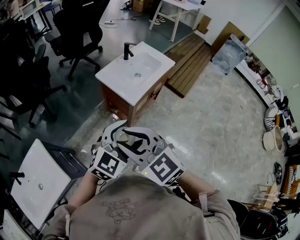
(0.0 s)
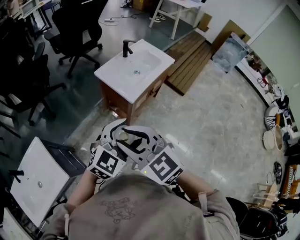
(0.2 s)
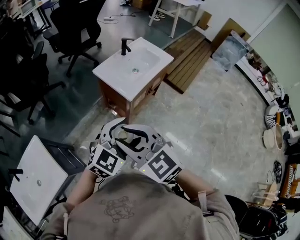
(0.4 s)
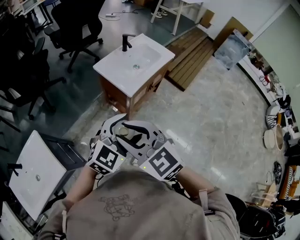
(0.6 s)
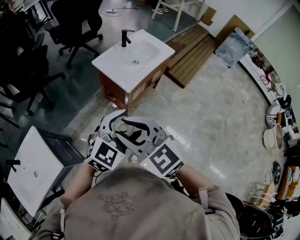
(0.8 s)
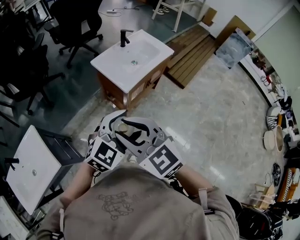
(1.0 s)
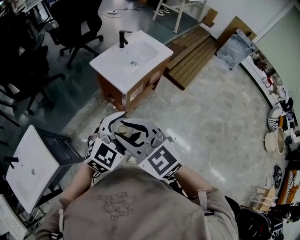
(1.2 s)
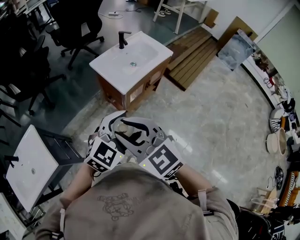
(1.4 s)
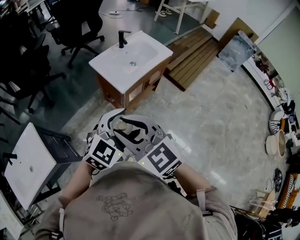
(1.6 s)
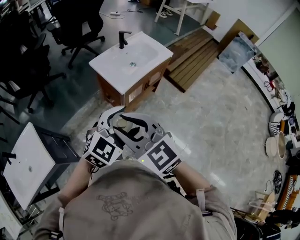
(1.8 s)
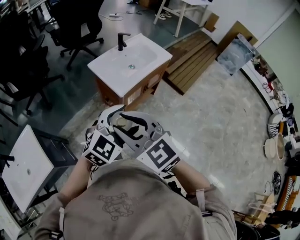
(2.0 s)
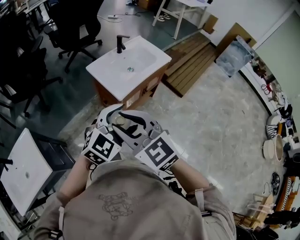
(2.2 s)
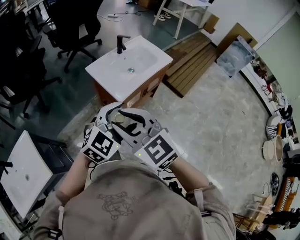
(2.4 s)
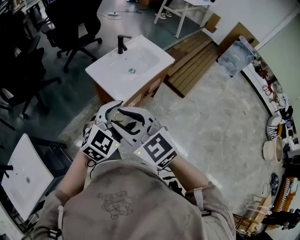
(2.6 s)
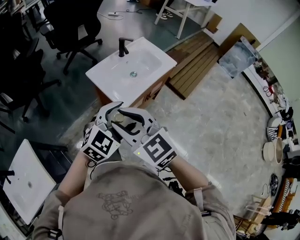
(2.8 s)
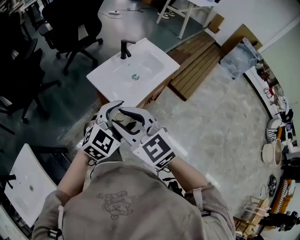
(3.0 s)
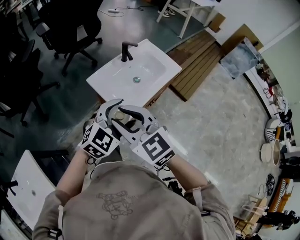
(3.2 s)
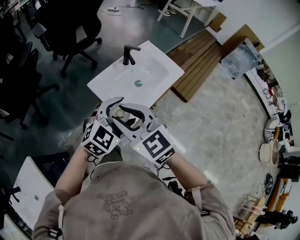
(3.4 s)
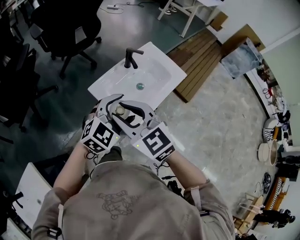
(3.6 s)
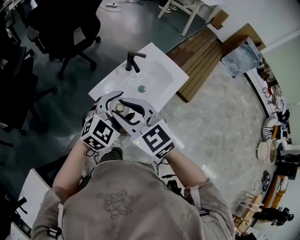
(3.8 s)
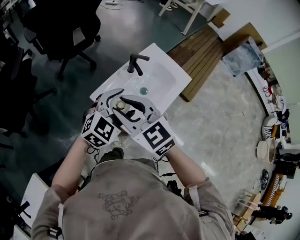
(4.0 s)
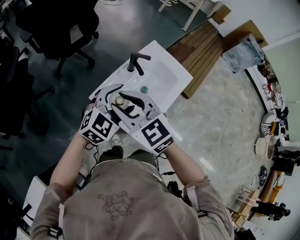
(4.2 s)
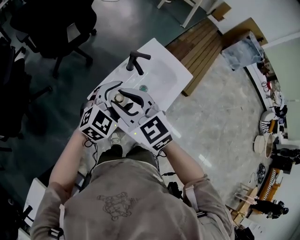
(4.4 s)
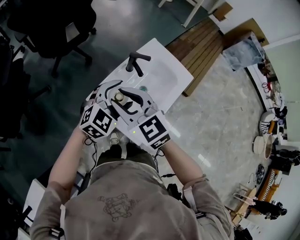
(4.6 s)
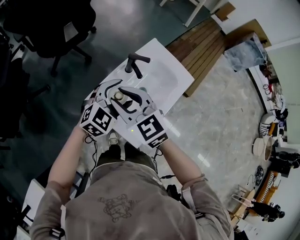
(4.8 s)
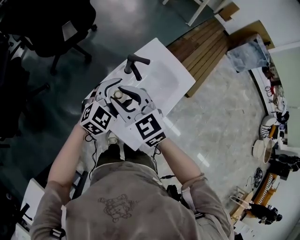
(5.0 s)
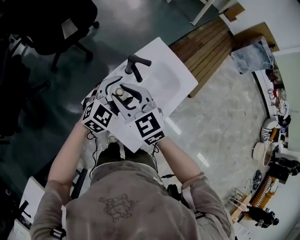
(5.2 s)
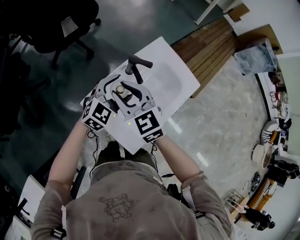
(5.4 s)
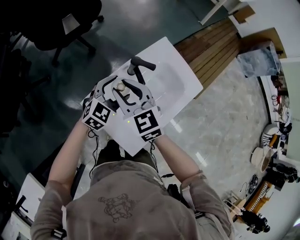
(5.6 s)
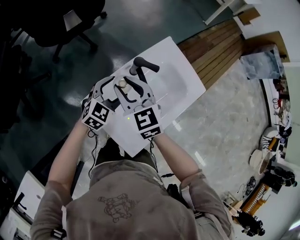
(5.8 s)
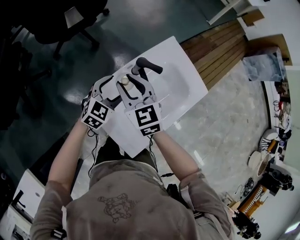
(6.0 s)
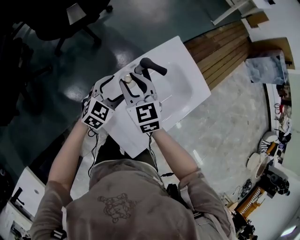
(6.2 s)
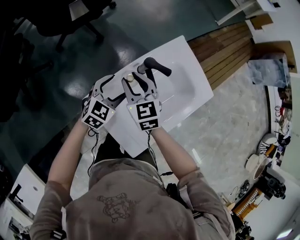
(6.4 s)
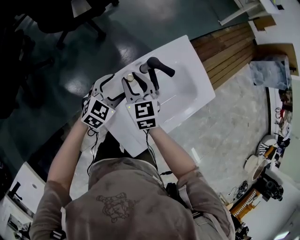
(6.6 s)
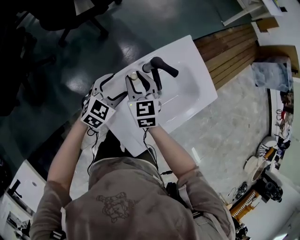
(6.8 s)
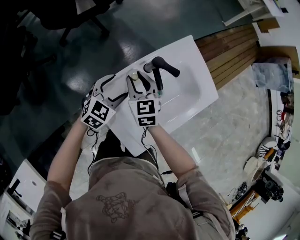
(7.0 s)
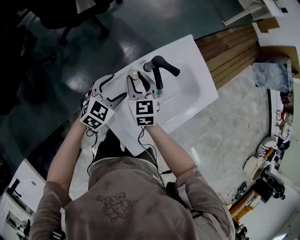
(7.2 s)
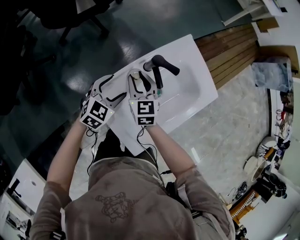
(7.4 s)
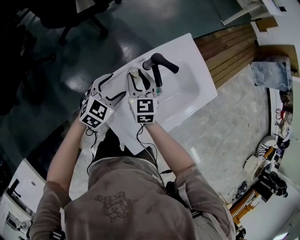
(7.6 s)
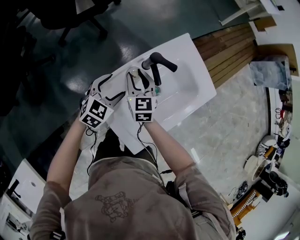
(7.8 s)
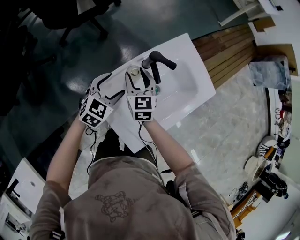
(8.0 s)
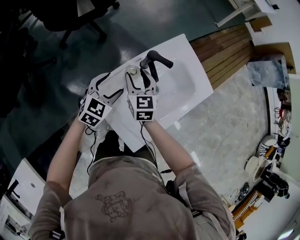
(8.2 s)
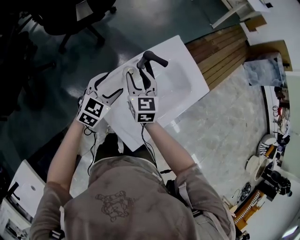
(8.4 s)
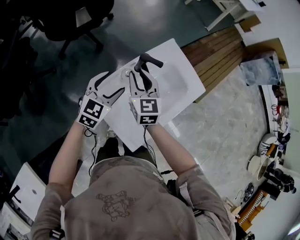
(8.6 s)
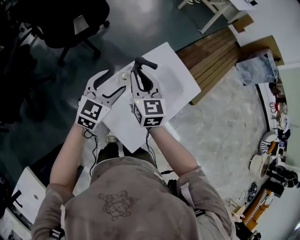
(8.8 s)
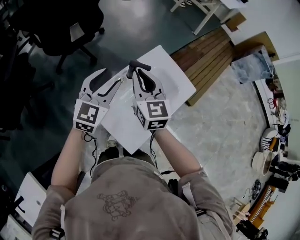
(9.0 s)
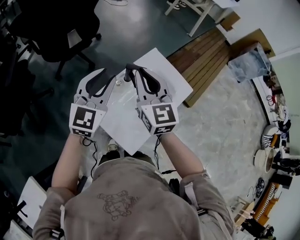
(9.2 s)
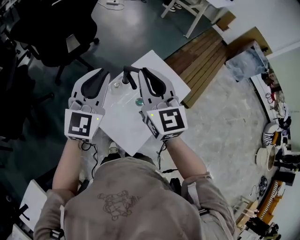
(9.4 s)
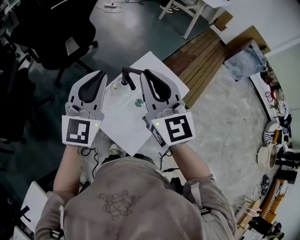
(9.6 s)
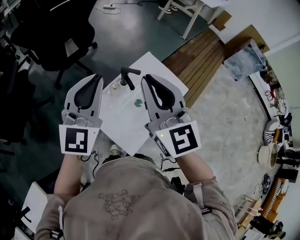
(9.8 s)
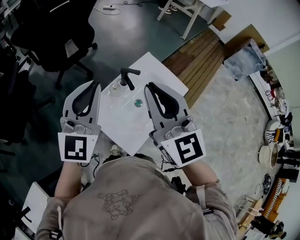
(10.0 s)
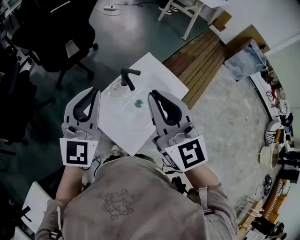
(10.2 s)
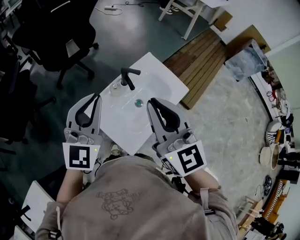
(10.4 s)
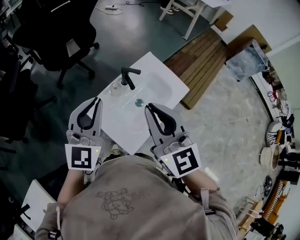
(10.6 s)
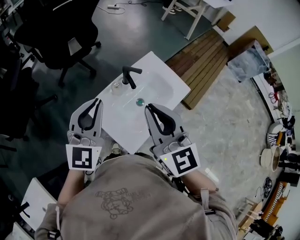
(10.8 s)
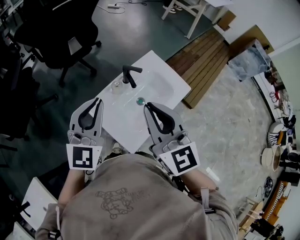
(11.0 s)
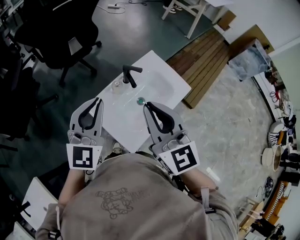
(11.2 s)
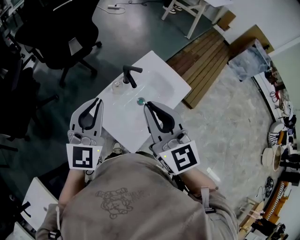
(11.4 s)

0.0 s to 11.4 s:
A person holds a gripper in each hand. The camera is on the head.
0.0 to 1.4 s: Both grippers move to the right, roughly 10 cm.
1.4 to 2.8 s: The grippers both shift forward by approximately 15 cm.
2.8 to 4.2 s: Both grippers travel together forward, approximately 30 cm.
4.2 to 5.6 s: Both grippers travel together forward and downward, about 20 cm.
5.6 to 7.2 s: The left gripper goes about 10 cm downward and to the left; the right gripper travels downward and forward by about 15 cm.
7.2 to 8.6 s: Both grippers move upward, roughly 10 cm.
8.6 to 10.0 s: The left gripper shifts roughly 25 cm upward, changes its angle by some 30 degrees, and closes its fingers. The right gripper goes about 30 cm upward and backward, and swivels about 20 degrees.
10.0 to 11.4 s: The left gripper changes place by about 5 cm. The right gripper shifts some 5 cm downward.

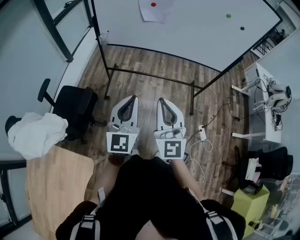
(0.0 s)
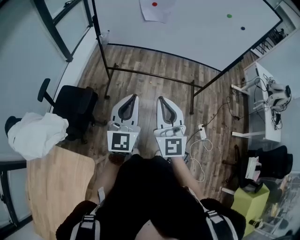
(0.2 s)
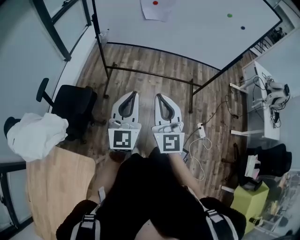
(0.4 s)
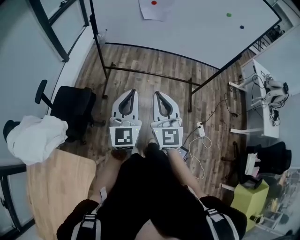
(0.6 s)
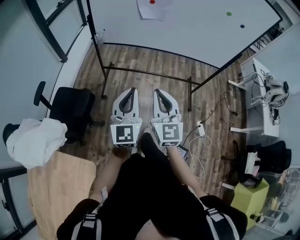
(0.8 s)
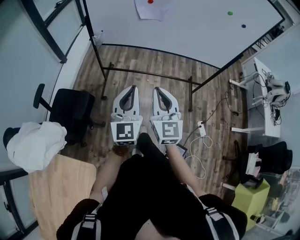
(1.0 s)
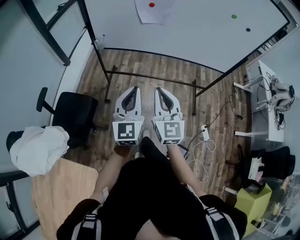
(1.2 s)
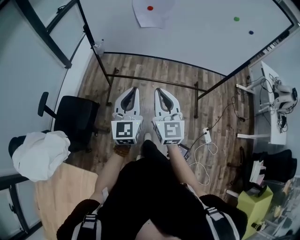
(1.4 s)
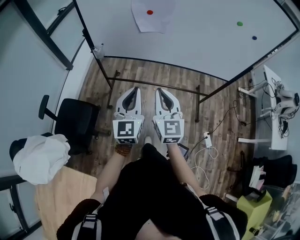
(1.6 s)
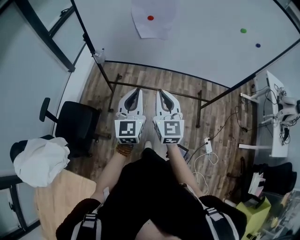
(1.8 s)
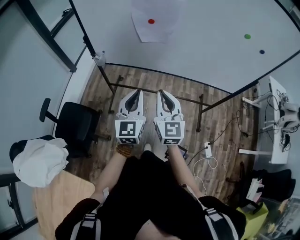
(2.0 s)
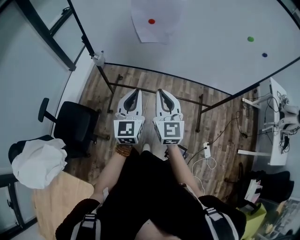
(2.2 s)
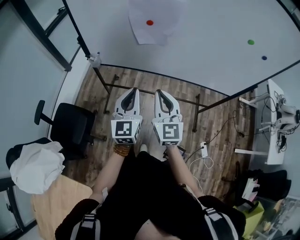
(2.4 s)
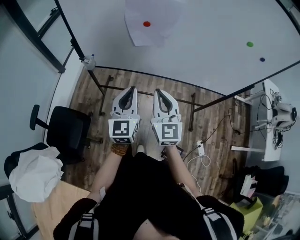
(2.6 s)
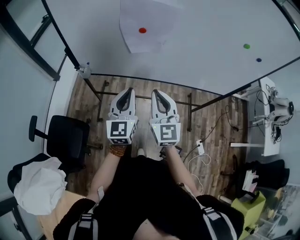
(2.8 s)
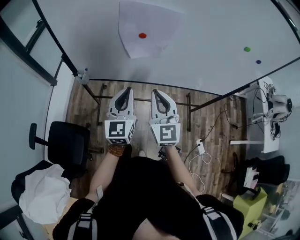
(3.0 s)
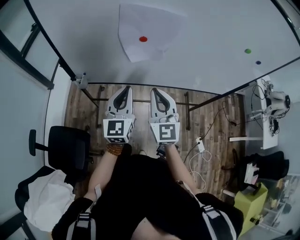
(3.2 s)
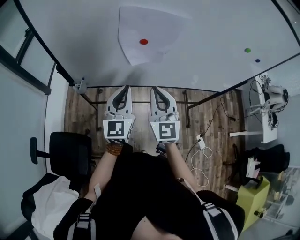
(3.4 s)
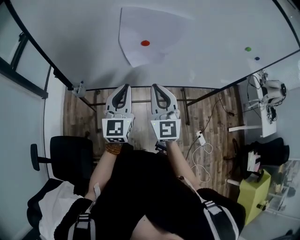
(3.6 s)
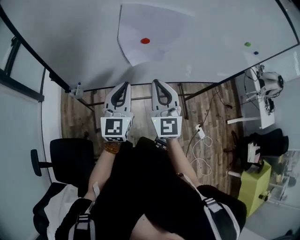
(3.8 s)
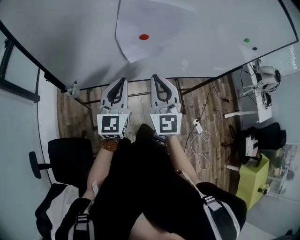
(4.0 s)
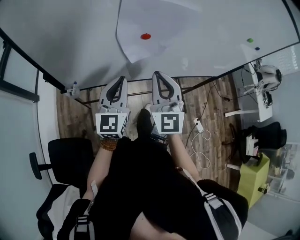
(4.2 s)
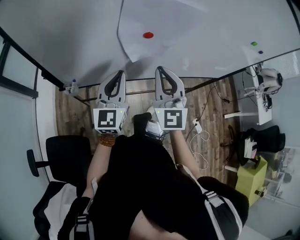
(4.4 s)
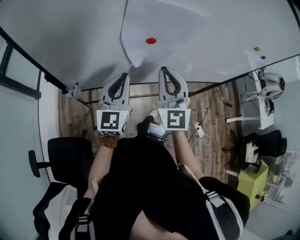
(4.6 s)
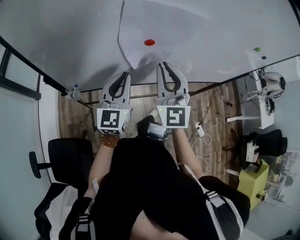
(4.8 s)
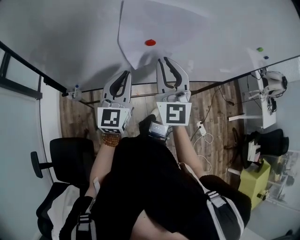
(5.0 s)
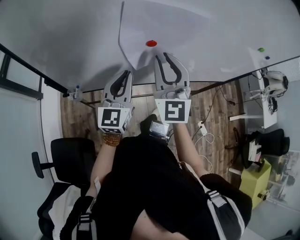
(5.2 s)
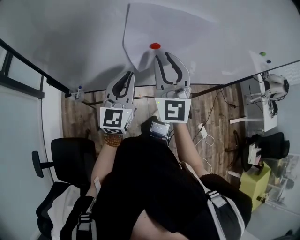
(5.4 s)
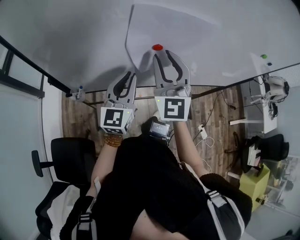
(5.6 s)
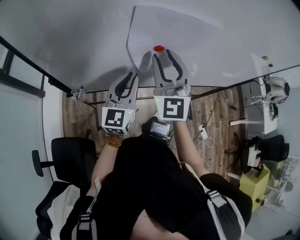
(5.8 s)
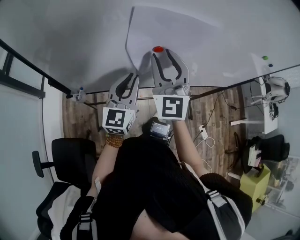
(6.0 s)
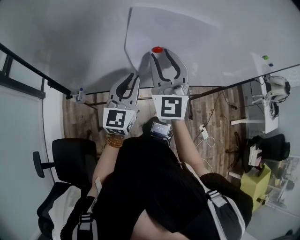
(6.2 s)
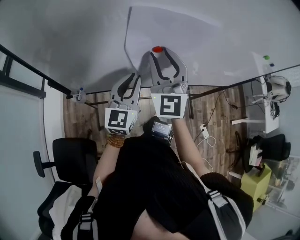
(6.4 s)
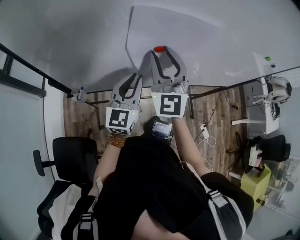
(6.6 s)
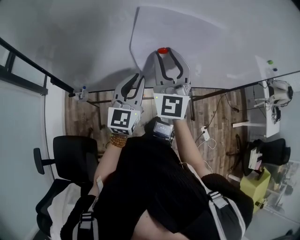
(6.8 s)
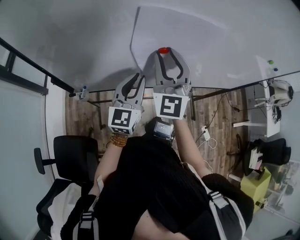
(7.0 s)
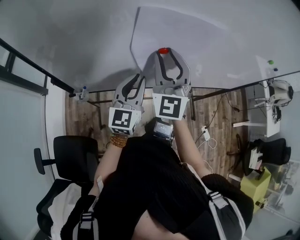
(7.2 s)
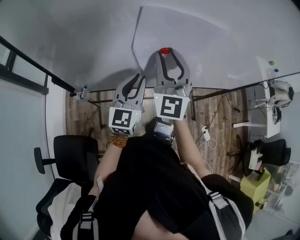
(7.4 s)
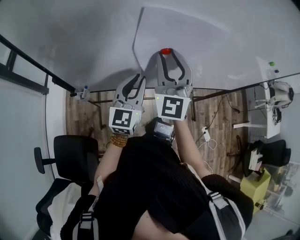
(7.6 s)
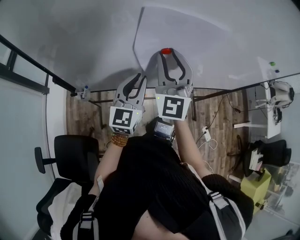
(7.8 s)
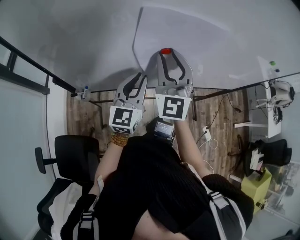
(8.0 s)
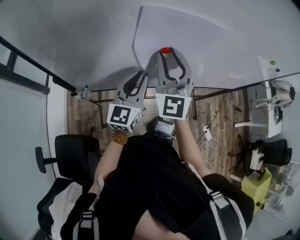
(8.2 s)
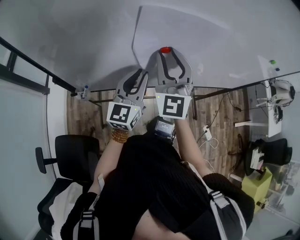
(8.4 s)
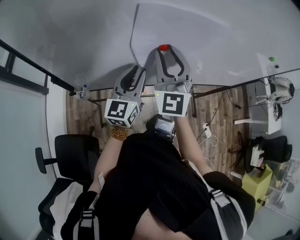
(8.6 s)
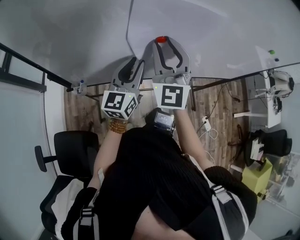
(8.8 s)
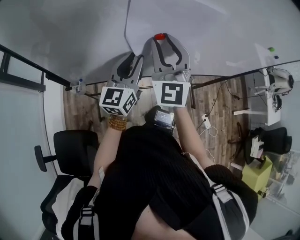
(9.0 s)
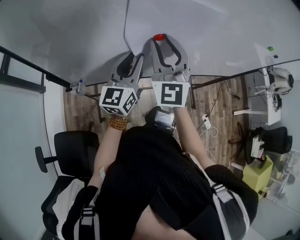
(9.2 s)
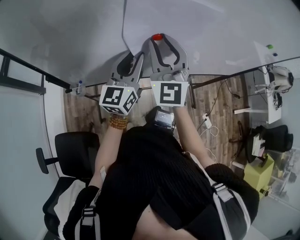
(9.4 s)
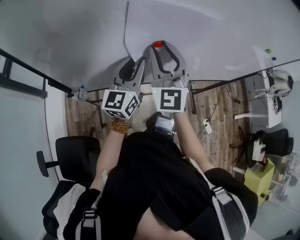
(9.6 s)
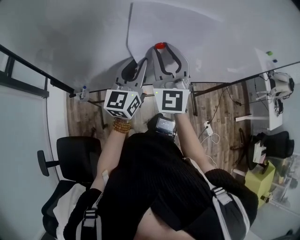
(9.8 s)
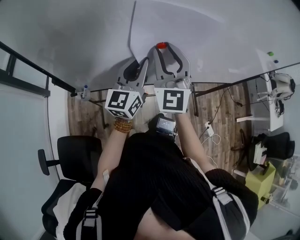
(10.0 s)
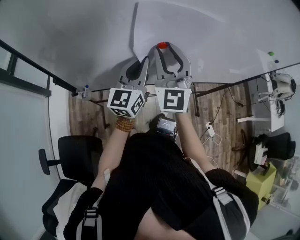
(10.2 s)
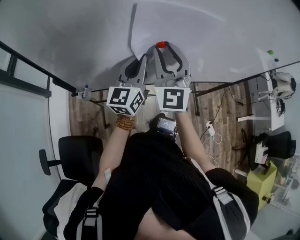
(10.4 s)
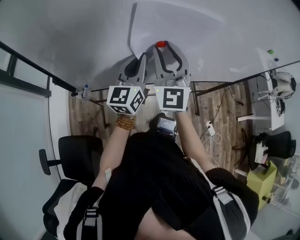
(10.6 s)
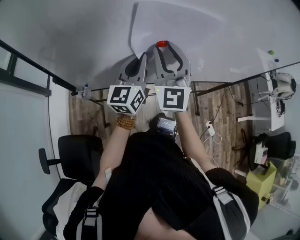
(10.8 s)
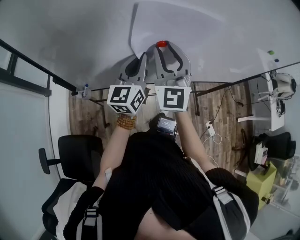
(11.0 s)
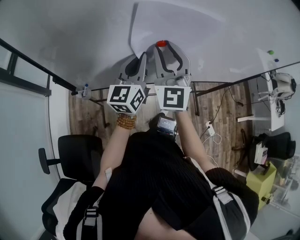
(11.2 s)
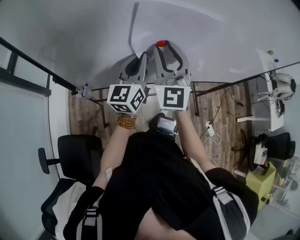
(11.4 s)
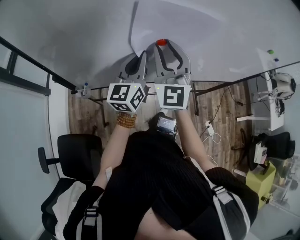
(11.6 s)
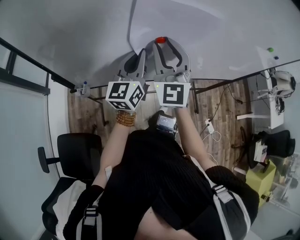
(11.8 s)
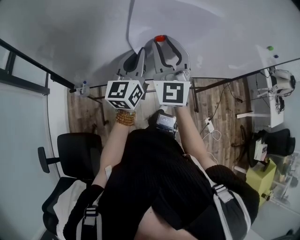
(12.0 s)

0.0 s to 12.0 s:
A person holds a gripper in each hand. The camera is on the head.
0.0 to 1.6 s: Both grippers move forward, roughly 20 cm.
1.6 to 3.0 s: Both grippers move forward, approximately 20 cm.
3.0 to 4.4 s: The right gripper goes roughly 10 cm forward. Meanwhile the left gripper travels forward and to the left by roughly 15 cm.
4.4 to 6.0 s: The right gripper moves forward, roughly 10 cm, and opens up.
6.0 to 7.6 s: The two grippers keep their place.
7.6 to 9.0 s: There are only small adjustments of the grippers.
9.0 to 10.4 s: The left gripper closes its fingers.
10.4 to 12.0 s: Both grippers stay about where they are.

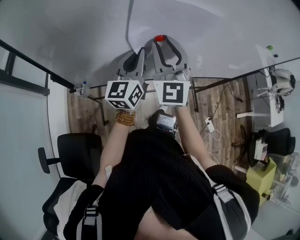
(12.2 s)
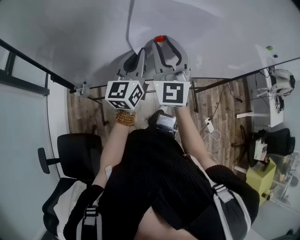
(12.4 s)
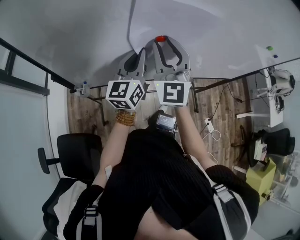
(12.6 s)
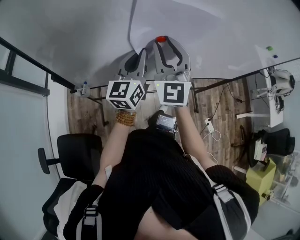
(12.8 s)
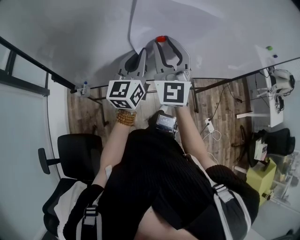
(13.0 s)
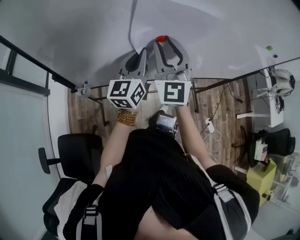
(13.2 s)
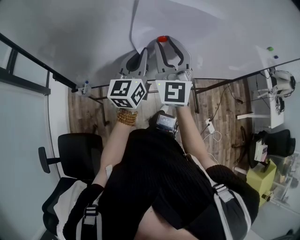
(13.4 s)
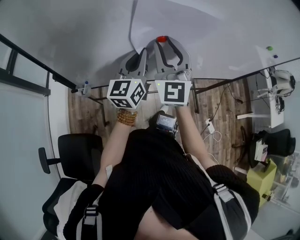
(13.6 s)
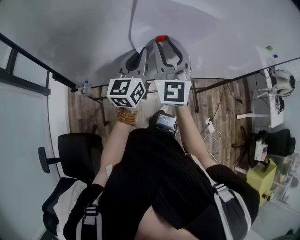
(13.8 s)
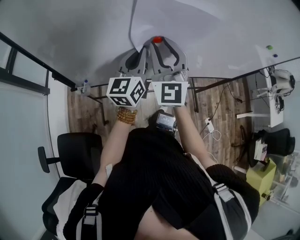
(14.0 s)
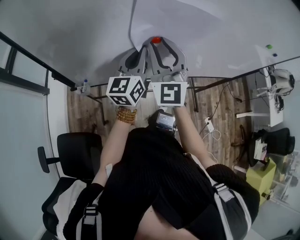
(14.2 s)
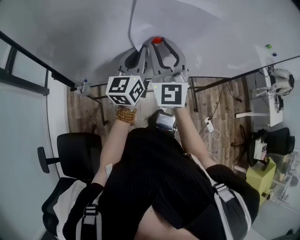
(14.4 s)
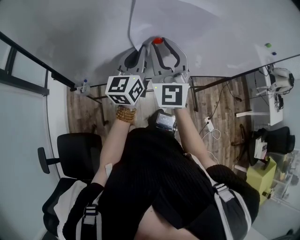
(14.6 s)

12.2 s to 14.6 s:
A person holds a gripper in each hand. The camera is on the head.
12.2 to 13.4 s: Both grippers stay put.
13.4 to 14.6 s: The grippers stay close to where they were, moving slightly.
